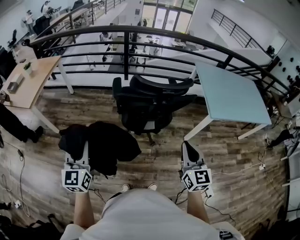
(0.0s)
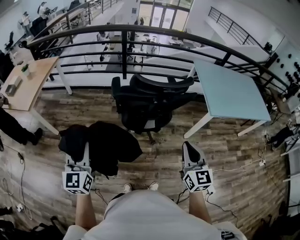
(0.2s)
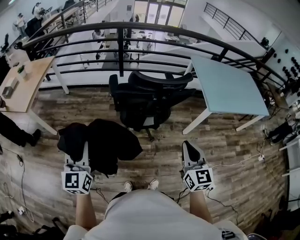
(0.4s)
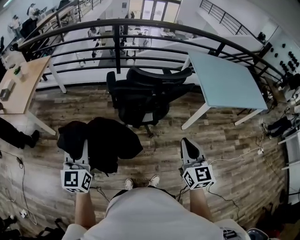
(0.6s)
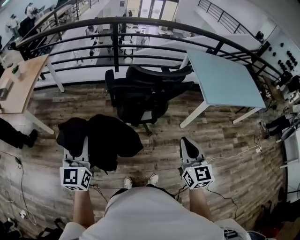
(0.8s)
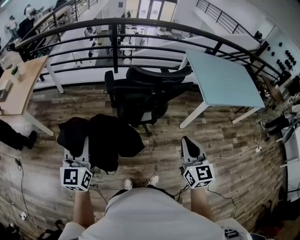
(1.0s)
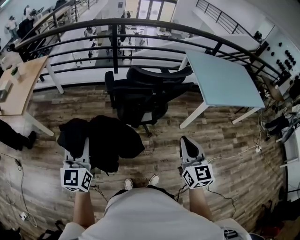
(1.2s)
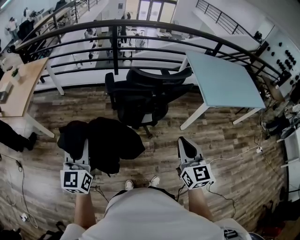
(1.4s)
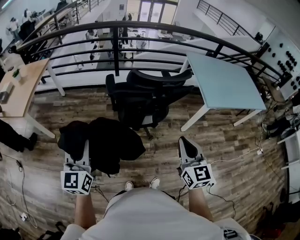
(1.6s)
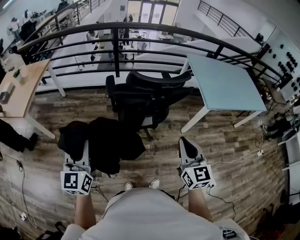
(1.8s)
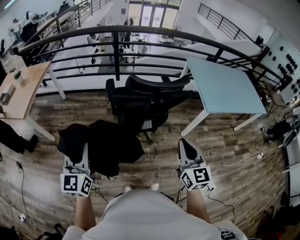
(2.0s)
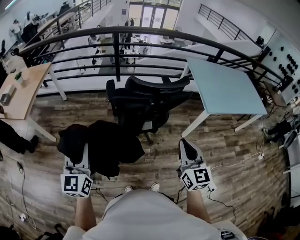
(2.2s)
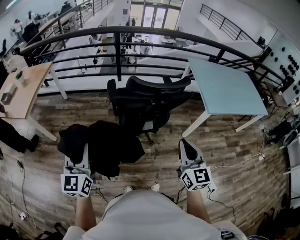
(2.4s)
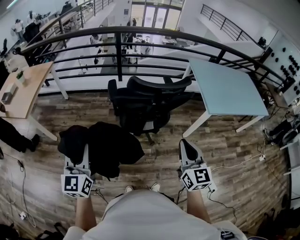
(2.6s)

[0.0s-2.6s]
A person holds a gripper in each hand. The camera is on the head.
0.0s to 2.6s: The grippers move only a little.

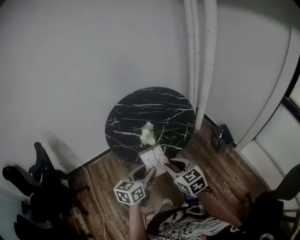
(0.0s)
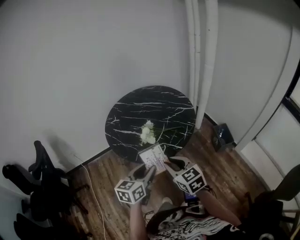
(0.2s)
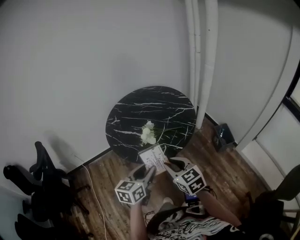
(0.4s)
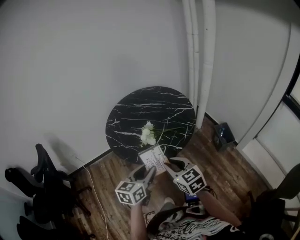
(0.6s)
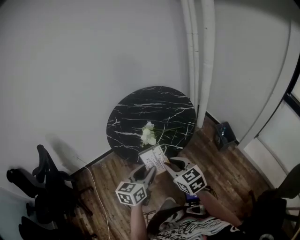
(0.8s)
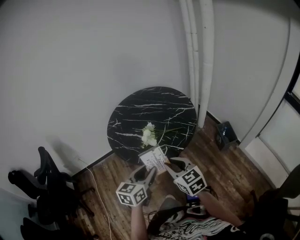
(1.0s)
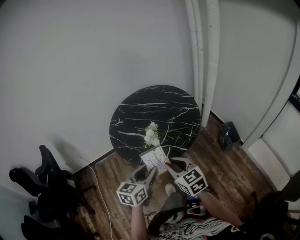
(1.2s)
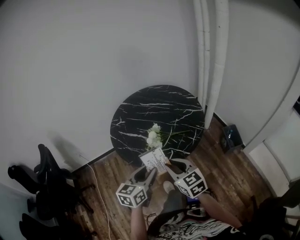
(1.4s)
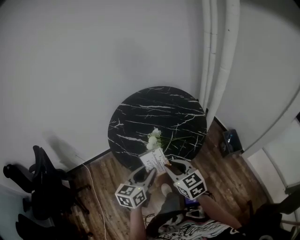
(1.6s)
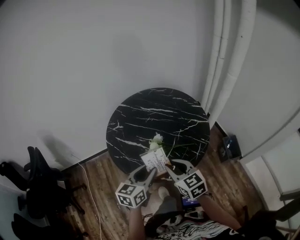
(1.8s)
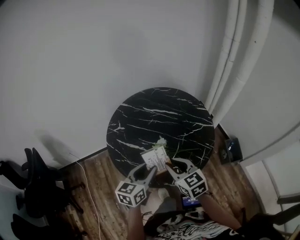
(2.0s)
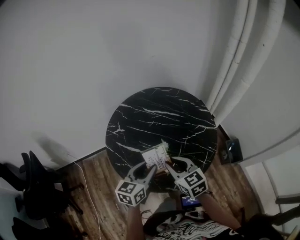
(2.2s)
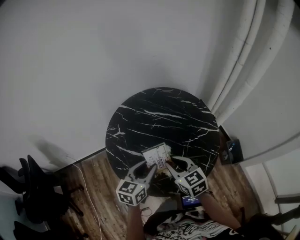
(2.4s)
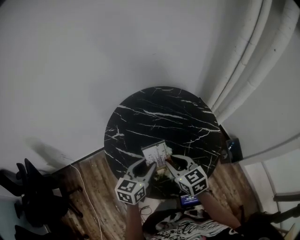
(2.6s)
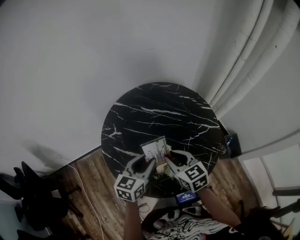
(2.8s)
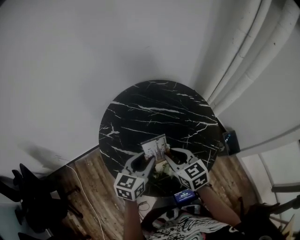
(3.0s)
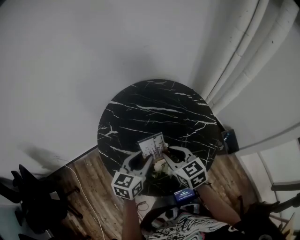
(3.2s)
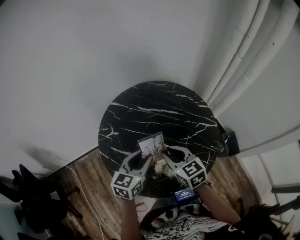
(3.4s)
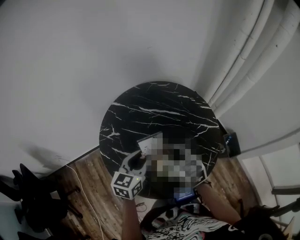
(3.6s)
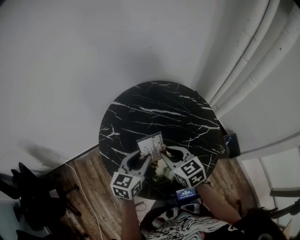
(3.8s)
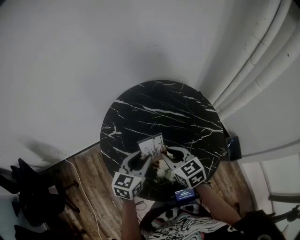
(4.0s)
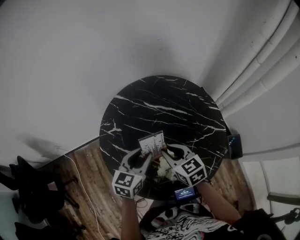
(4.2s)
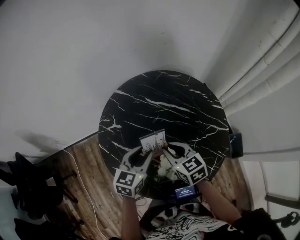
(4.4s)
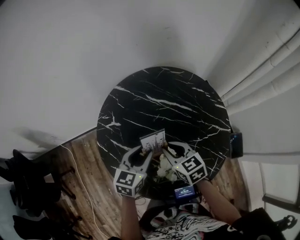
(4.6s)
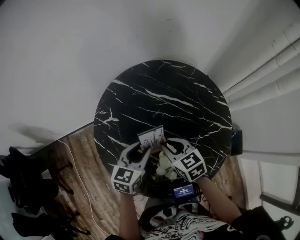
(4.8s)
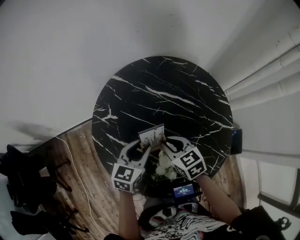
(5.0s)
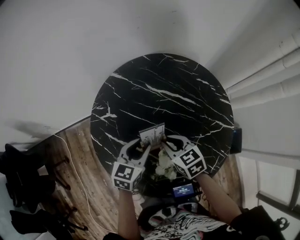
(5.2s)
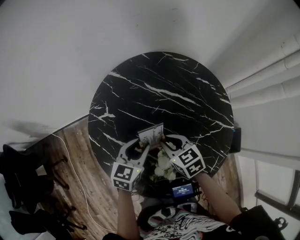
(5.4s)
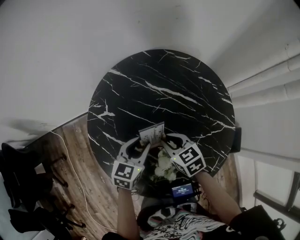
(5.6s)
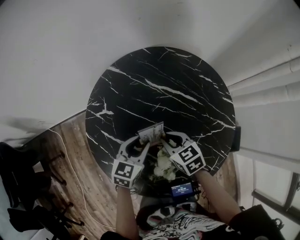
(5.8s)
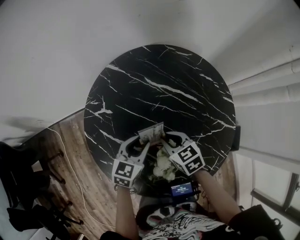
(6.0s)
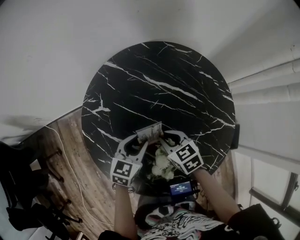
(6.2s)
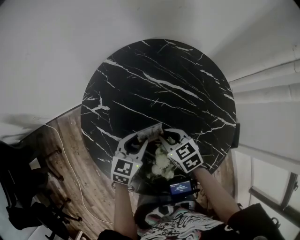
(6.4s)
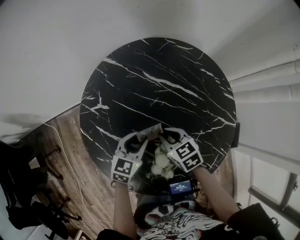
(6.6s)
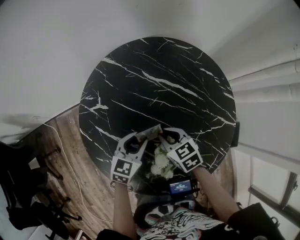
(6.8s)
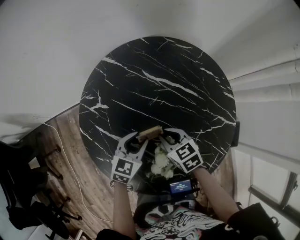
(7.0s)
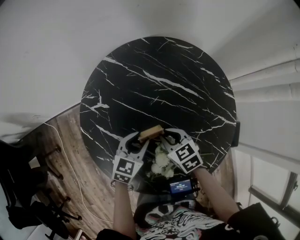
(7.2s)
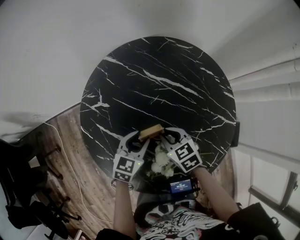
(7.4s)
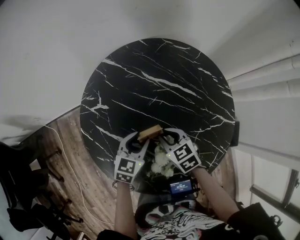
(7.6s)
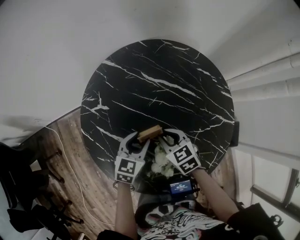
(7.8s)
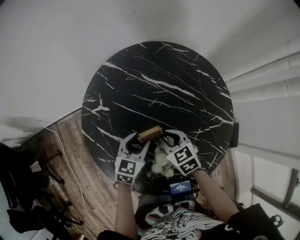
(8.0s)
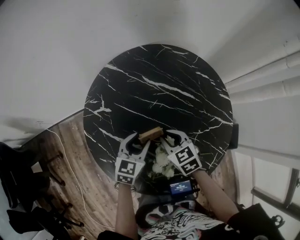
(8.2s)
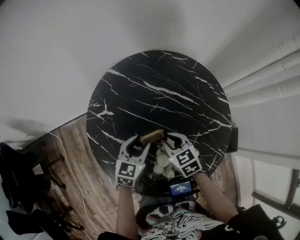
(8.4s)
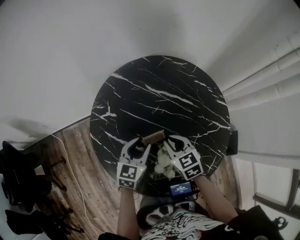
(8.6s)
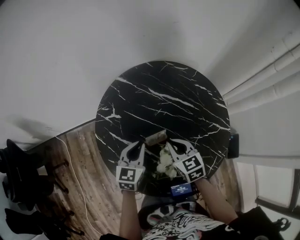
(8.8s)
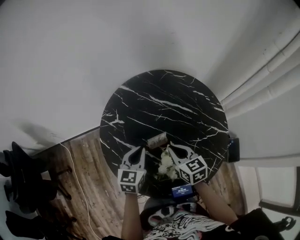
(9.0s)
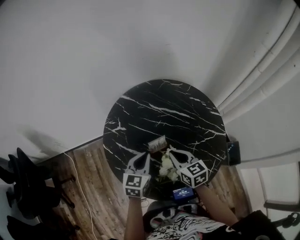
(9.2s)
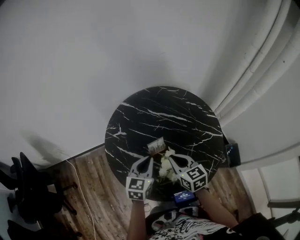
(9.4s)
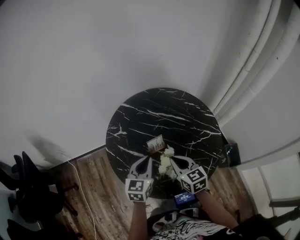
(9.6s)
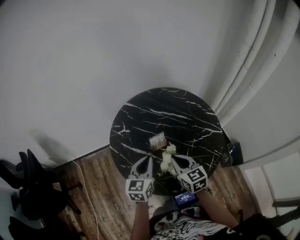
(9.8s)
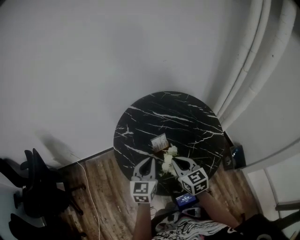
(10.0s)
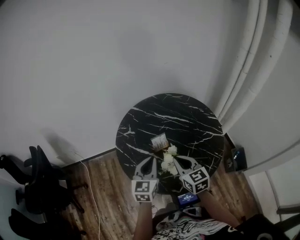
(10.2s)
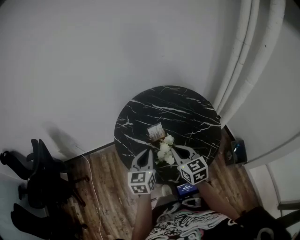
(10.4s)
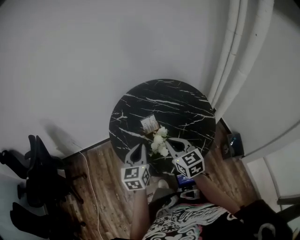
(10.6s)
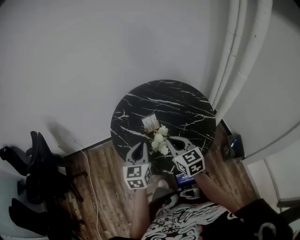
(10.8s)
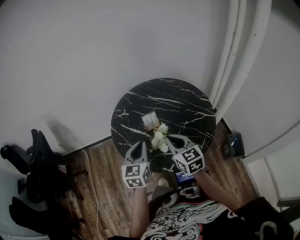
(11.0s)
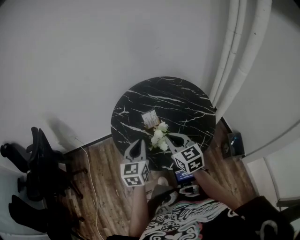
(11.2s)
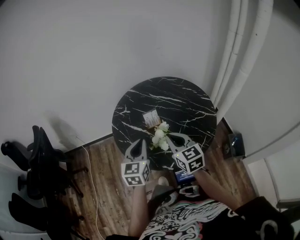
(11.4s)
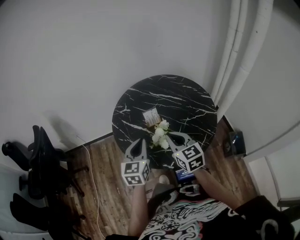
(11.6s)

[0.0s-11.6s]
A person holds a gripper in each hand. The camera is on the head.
0.0s to 1.4s: Both grippers travel together forward, roughly 5 cm.
1.4s to 2.8s: The grippers both shift forward by approximately 30 cm.
2.8s to 4.4s: The left gripper heads forward, covering roughly 5 cm, while the right gripper goes some 10 cm forward and downward.
4.4s to 5.8s: Both grippers move downward, approximately 10 cm.
5.8s to 7.2s: The grippers make only small movements.
7.2s to 8.8s: The grippers both shift upward by some 10 cm. The left gripper closes.
8.8s to 10.2s: The right gripper moves backward and upward, approximately 20 cm. Meanwhile the left gripper moves upward and backward, about 20 cm.
10.2s to 11.6s: Both grippers travel together backward, some 5 cm.

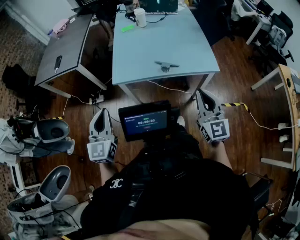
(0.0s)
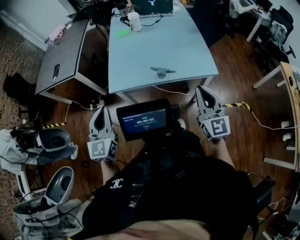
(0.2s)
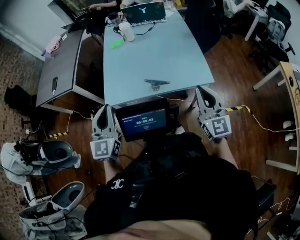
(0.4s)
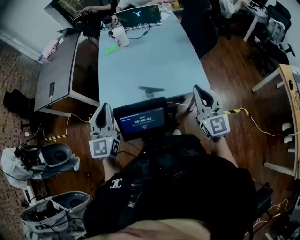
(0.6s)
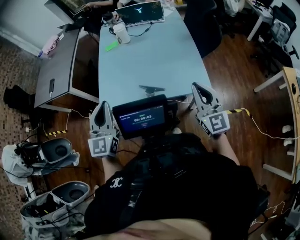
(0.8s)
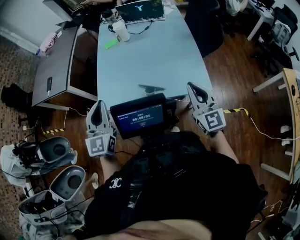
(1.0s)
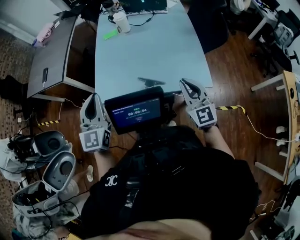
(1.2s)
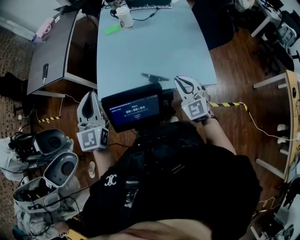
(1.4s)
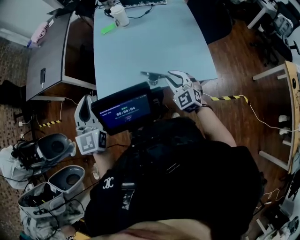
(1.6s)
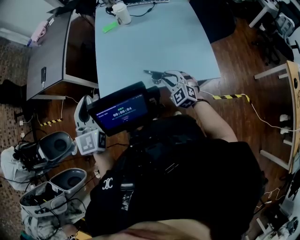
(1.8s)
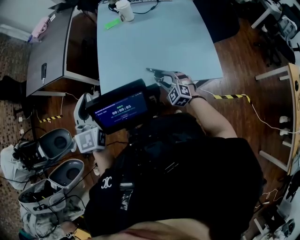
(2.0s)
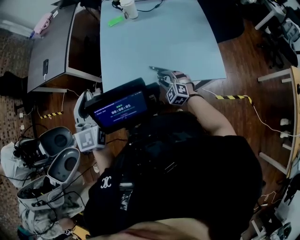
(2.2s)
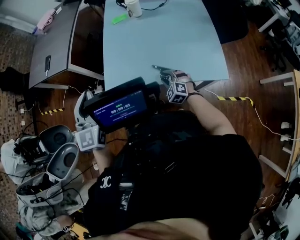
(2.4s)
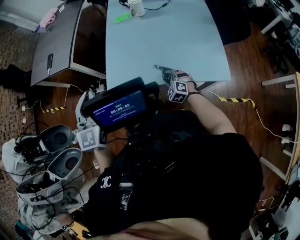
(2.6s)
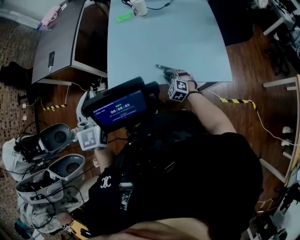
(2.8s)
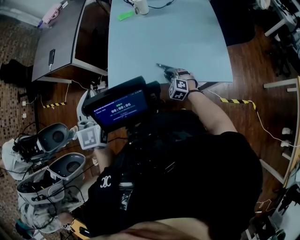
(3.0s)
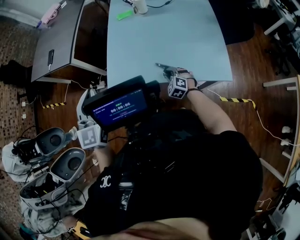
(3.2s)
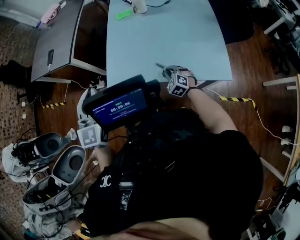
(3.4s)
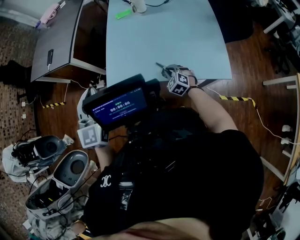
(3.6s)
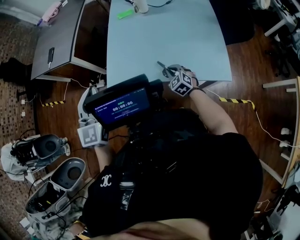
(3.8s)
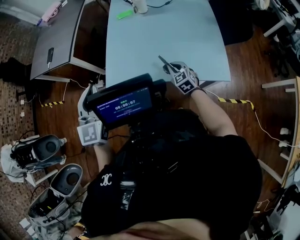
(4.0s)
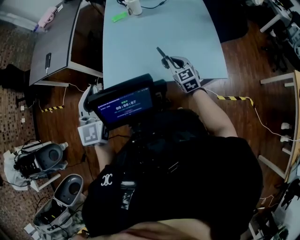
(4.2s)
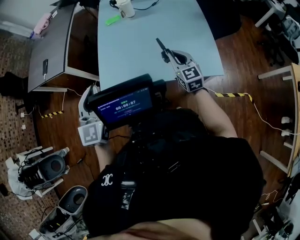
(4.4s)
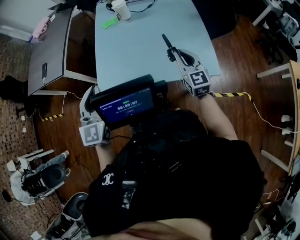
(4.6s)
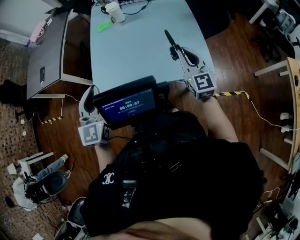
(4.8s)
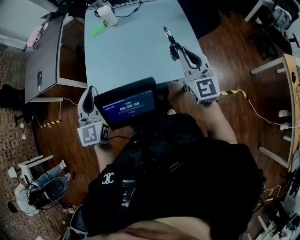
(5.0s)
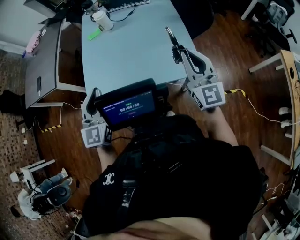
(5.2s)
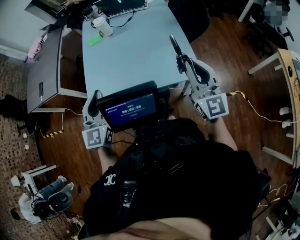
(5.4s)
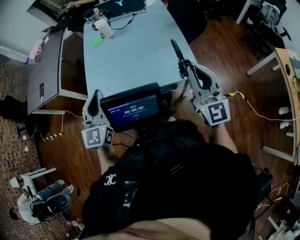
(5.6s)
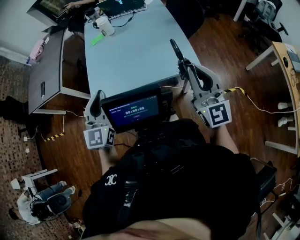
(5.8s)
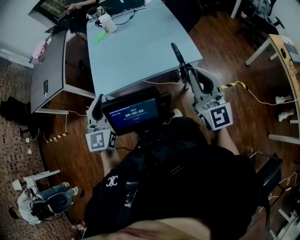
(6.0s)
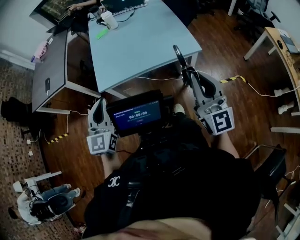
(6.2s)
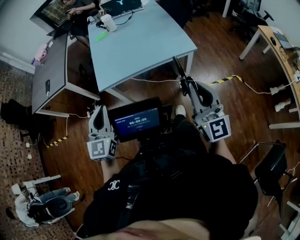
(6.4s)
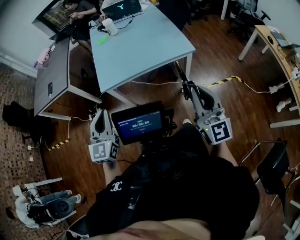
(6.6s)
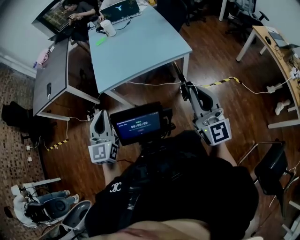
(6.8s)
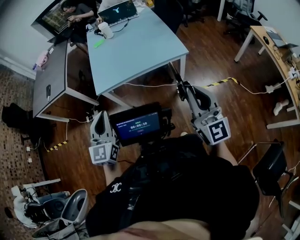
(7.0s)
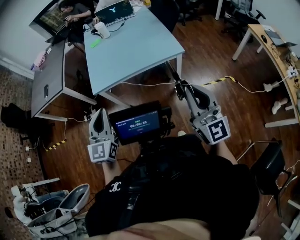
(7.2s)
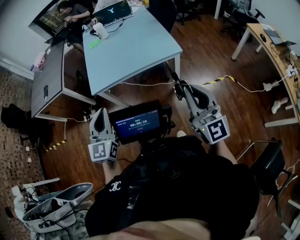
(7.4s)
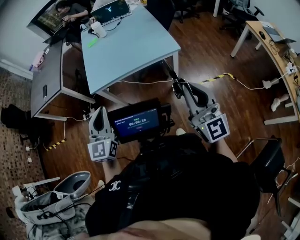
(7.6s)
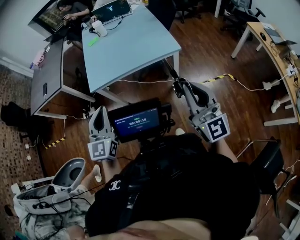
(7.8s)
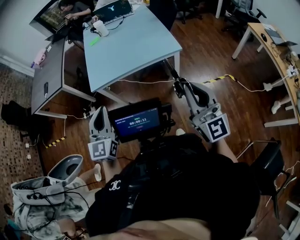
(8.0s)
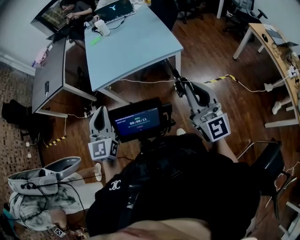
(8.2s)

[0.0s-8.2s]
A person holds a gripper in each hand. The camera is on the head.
0.0s to 1.6s: The right gripper is displaced forward and downward by about 30 cm, swivels about 40 degrees, and opens, while the left gripper goes about 25 cm forward.
1.6s to 3.2s: The right gripper shifts about 20 cm downward, changes its angle by about 30 degrees, and opens, then closes again.
3.2s to 5.0s: The right gripper shifts roughly 40 cm upward and to the right, and tilts its fingers roughly 50 degrees upward, while the left gripper heads to the right, covering about 15 cm.
5.0s to 6.6s: The two grippers go some 35 cm backward.
6.6s to 8.2s: The grippers both shift to the right by roughly 10 cm.

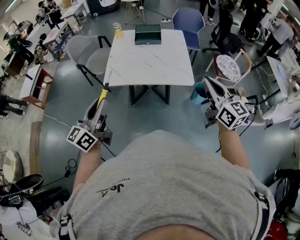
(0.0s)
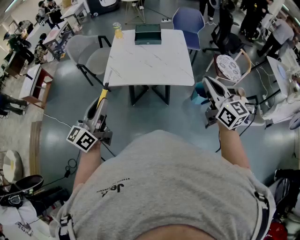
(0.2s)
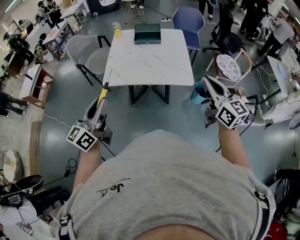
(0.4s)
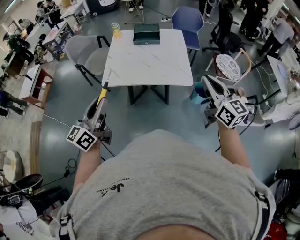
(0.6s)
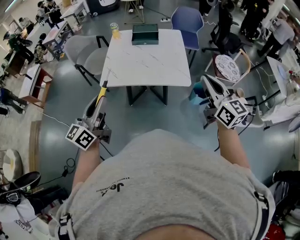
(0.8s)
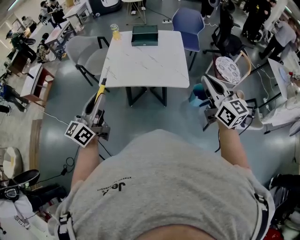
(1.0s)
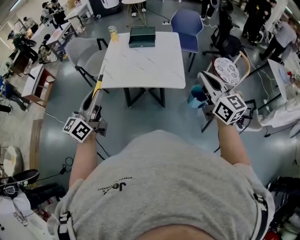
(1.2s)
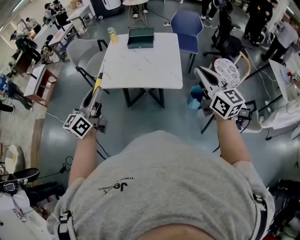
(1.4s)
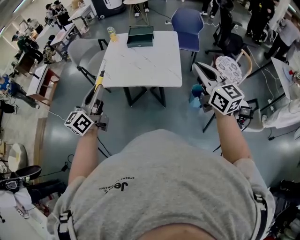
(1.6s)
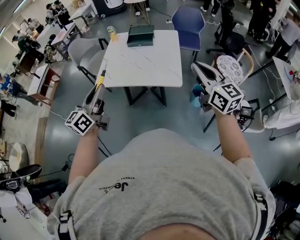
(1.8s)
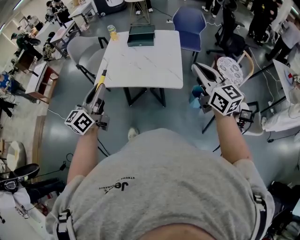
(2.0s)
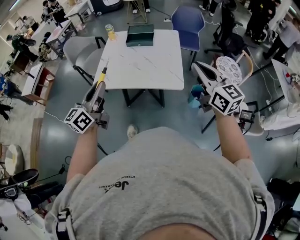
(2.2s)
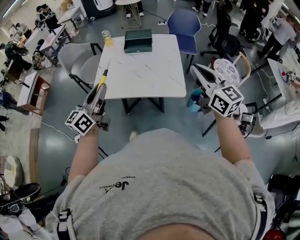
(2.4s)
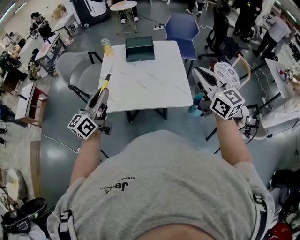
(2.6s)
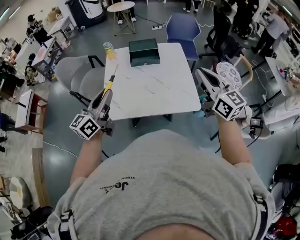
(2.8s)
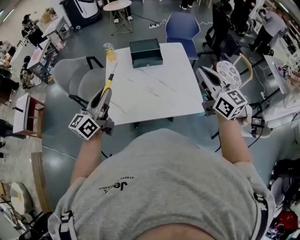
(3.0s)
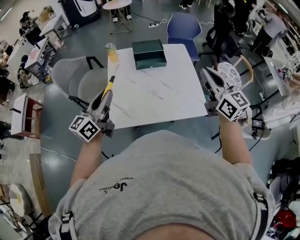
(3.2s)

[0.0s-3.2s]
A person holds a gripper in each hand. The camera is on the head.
0.0s to 1.6s: The grippers both shift to the right by approximately 10 cm.
1.6s to 3.2s: The grippers both shift forward and to the left by about 35 cm.
